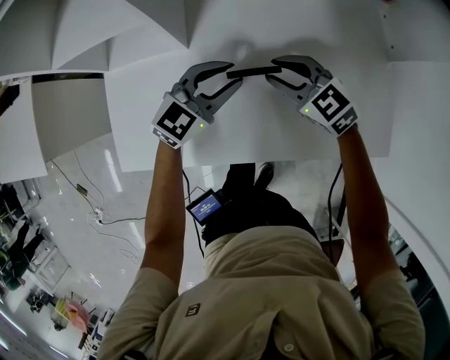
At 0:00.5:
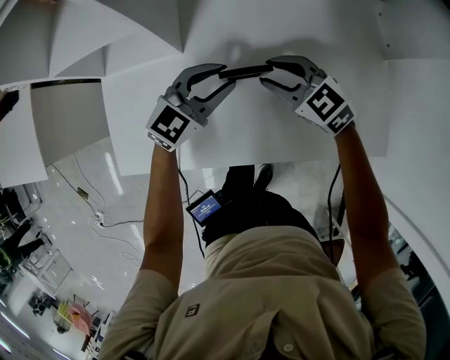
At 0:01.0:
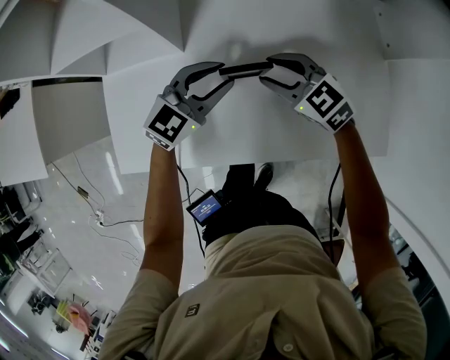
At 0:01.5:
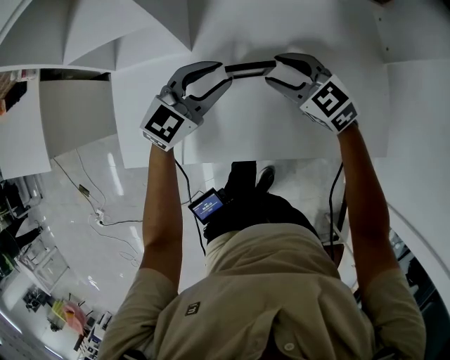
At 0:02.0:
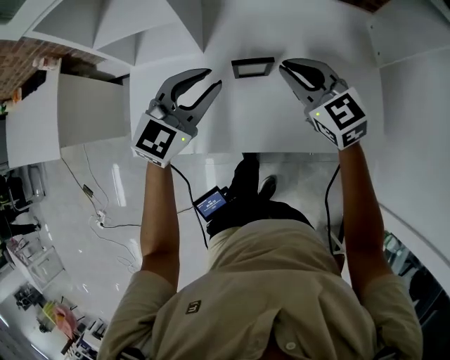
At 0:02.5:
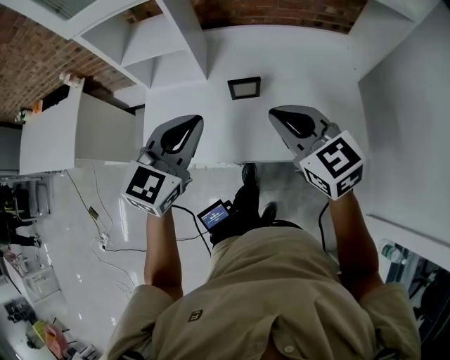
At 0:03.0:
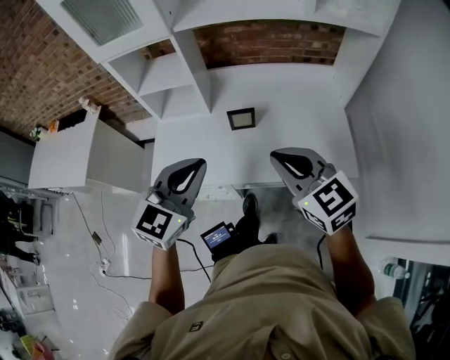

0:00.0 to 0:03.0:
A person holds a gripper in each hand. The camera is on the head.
0:00.0 to 0:01.5: The grippers stay close to where they were, moving slightly.
0:01.5 to 0:03.0: Both grippers travel together backward and upward, some 40 cm. The left gripper changes its angle by roughly 20 degrees, and closes its fingers; the right gripper changes its angle by roughly 20 degrees, and closes its fingers.

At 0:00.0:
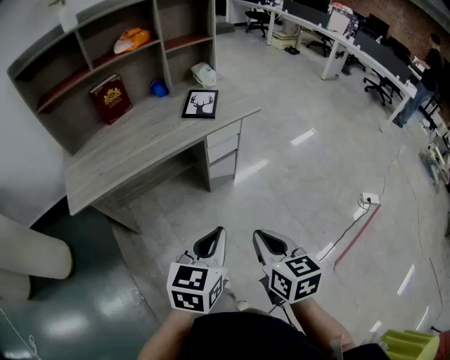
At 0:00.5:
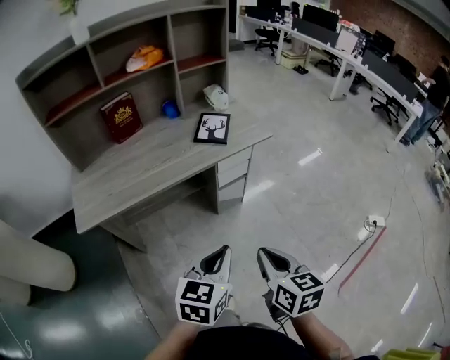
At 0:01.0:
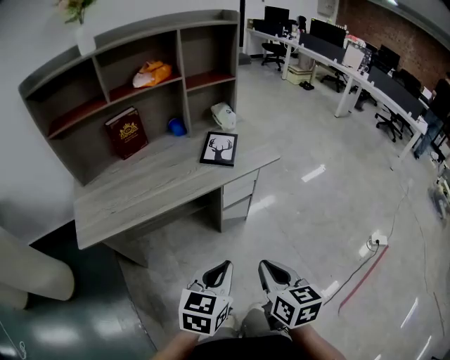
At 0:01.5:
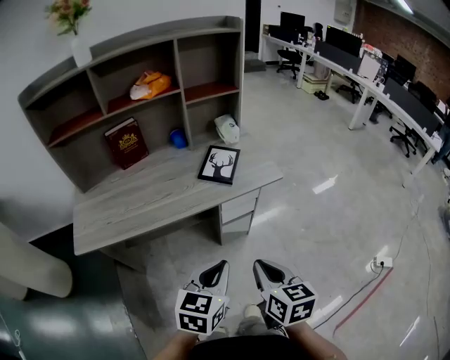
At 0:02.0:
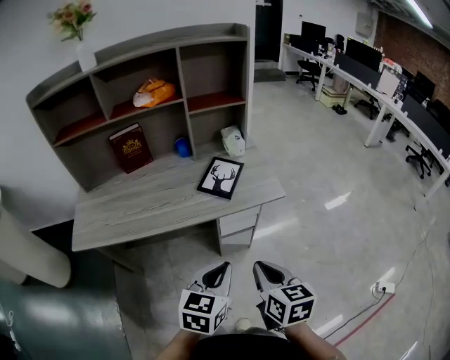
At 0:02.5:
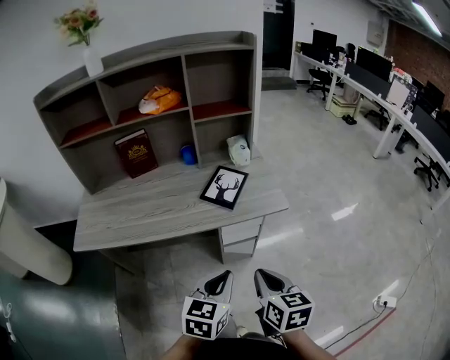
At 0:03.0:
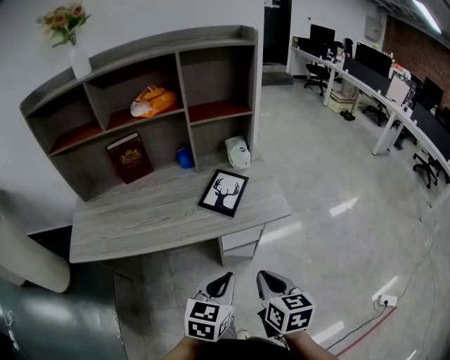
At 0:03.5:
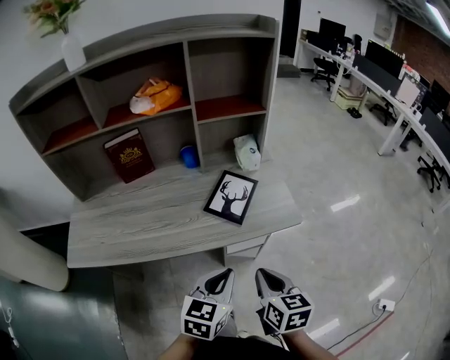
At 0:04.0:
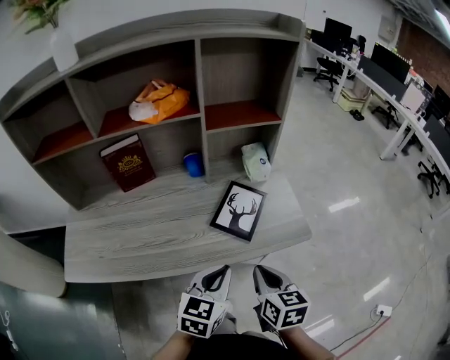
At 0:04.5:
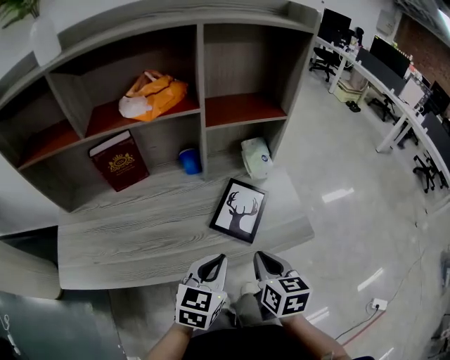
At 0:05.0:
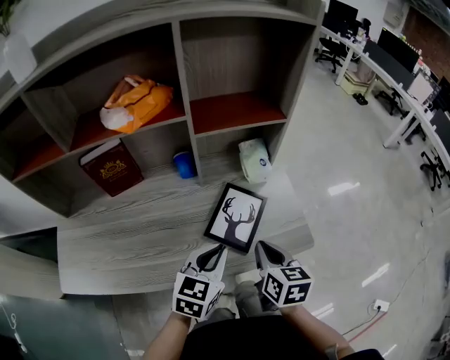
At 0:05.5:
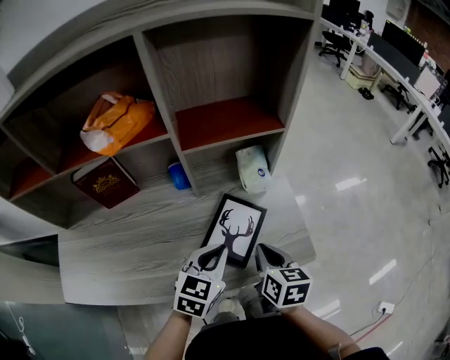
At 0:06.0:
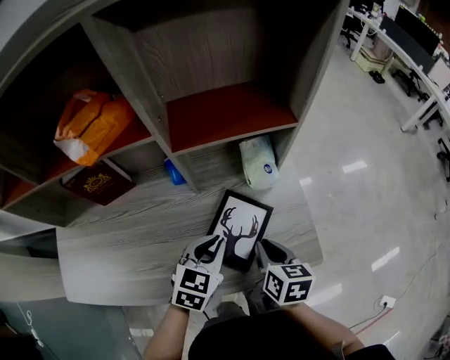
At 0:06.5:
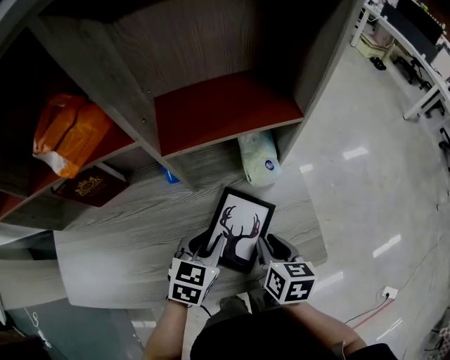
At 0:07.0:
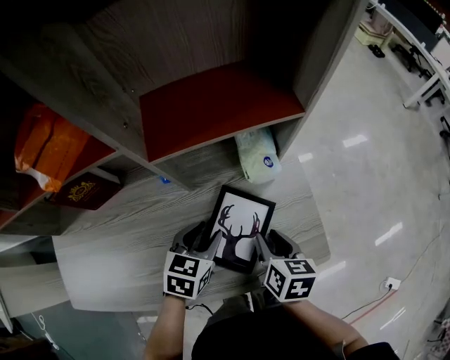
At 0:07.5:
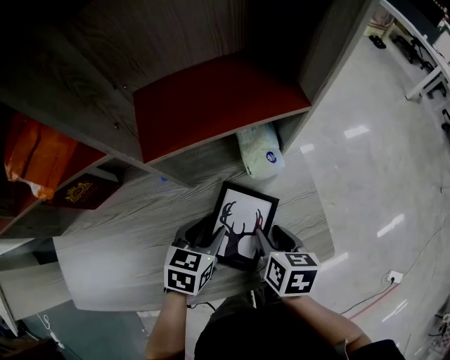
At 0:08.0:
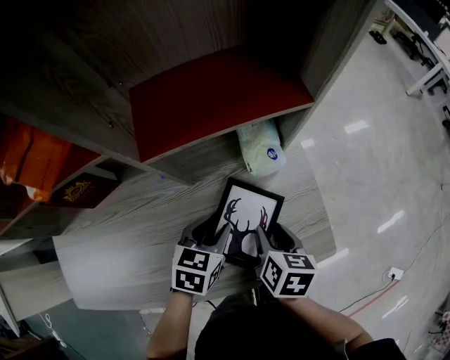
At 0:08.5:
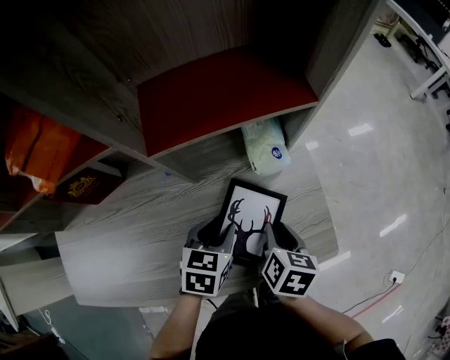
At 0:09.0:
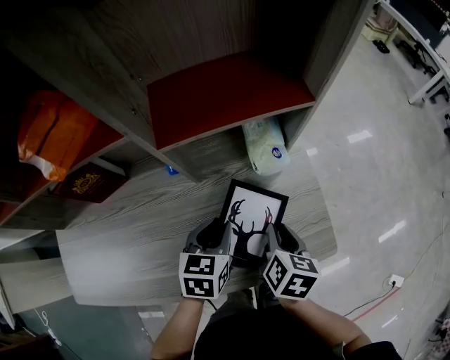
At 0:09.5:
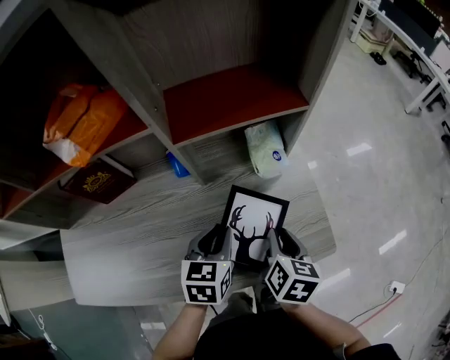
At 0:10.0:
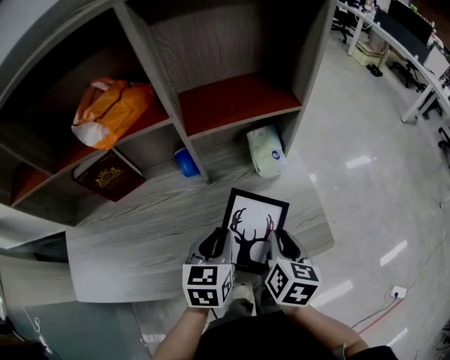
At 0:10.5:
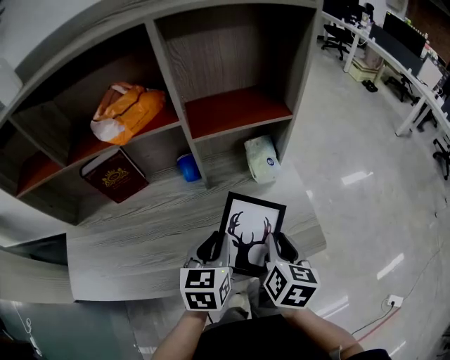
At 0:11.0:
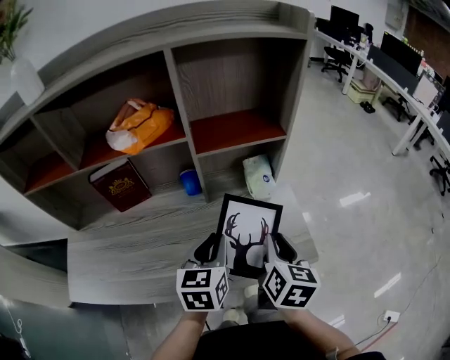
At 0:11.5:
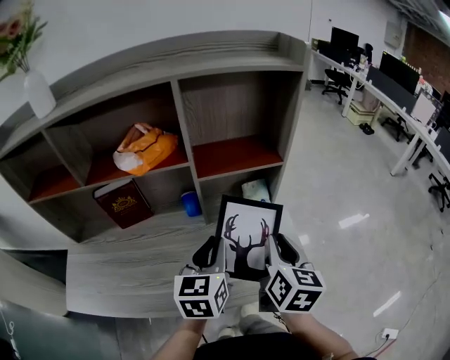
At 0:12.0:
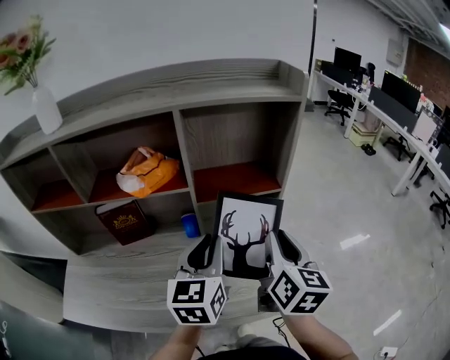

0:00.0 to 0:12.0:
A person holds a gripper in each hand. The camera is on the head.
0:00.0 to 0:02.0: The grippers both shift forward by some 25 cm.
0:02.0 to 0:04.0: Both grippers travel together forward, about 20 cm.
0:04.0 to 0:06.0: The grippers both shift forward by approximately 20 cm.
0:06.0 to 0:08.0: The right gripper moves approximately 5 cm, and opens up. The left gripper heads downward, covering about 5 cm, and opens up.
0:08.0 to 0:10.0: The two grippers go about 10 cm upward and backward. The right gripper closes its fingers.
0:10.0 to 0:12.0: The grippers both shift upward by approximately 20 cm. The left gripper swivels about 30 degrees. Meanwhile the right gripper rotates about 30 degrees.

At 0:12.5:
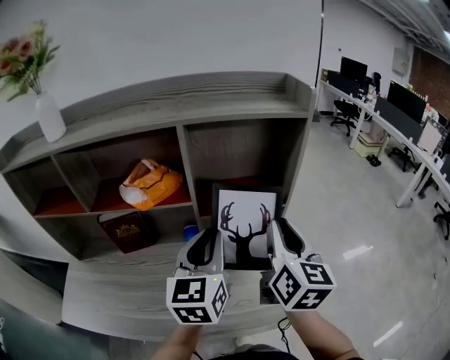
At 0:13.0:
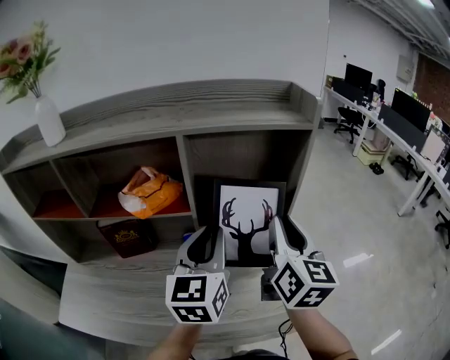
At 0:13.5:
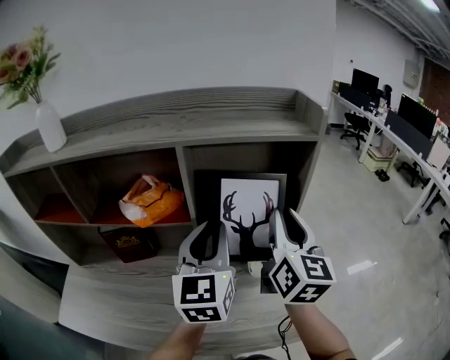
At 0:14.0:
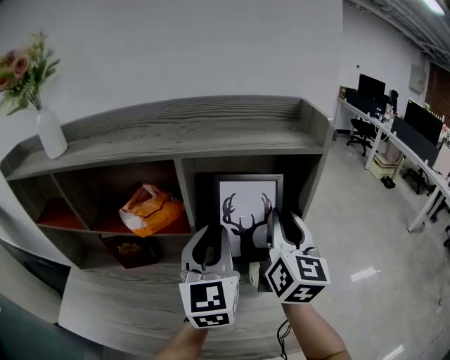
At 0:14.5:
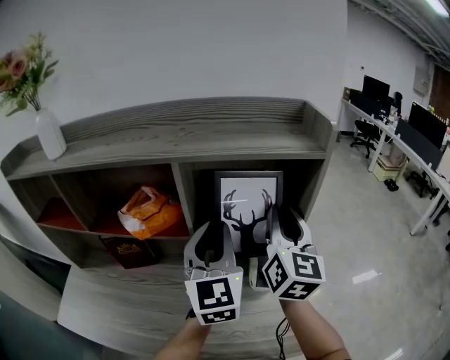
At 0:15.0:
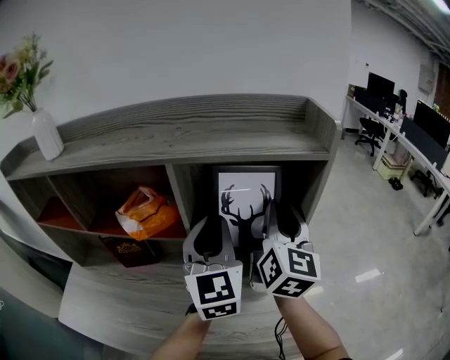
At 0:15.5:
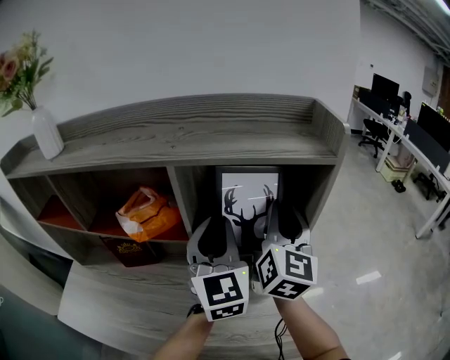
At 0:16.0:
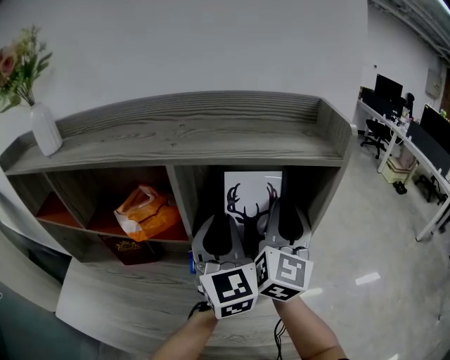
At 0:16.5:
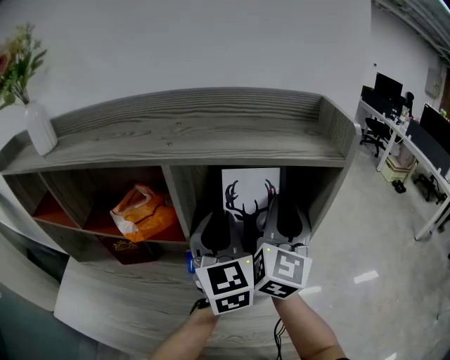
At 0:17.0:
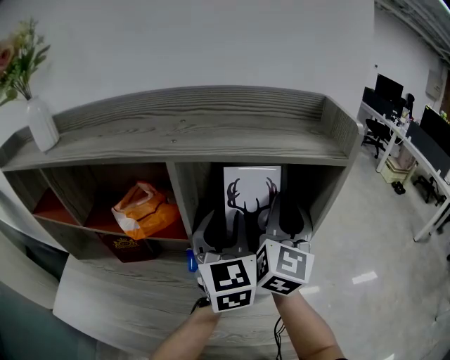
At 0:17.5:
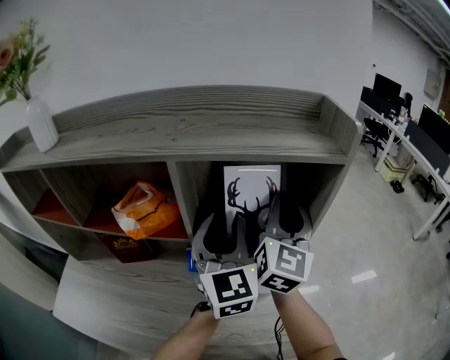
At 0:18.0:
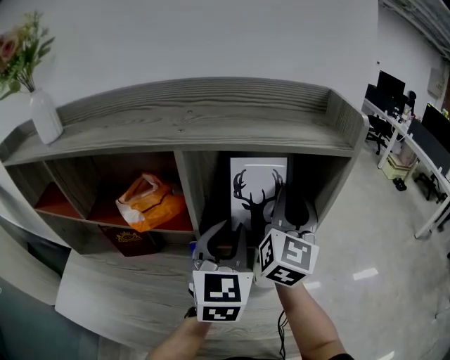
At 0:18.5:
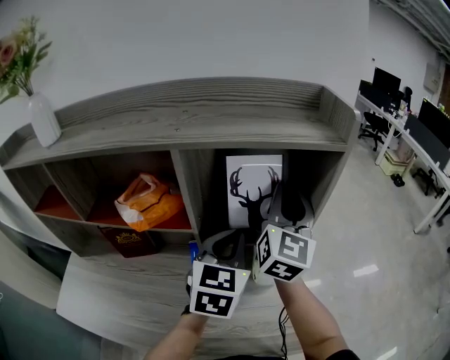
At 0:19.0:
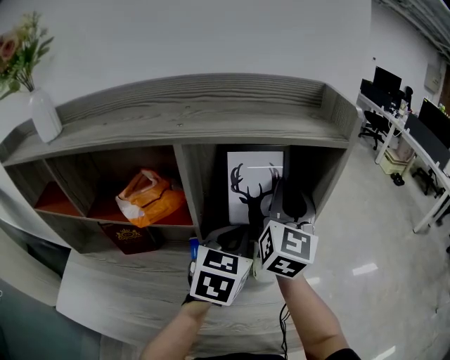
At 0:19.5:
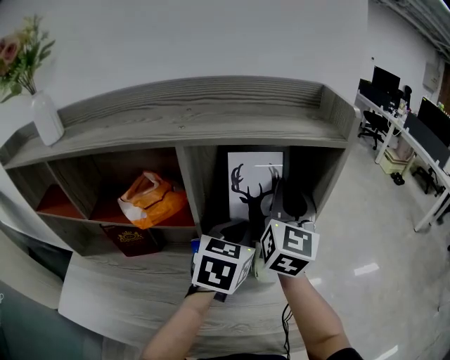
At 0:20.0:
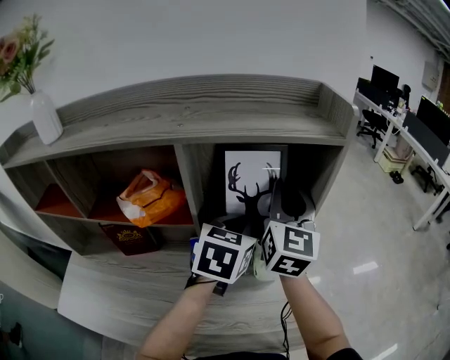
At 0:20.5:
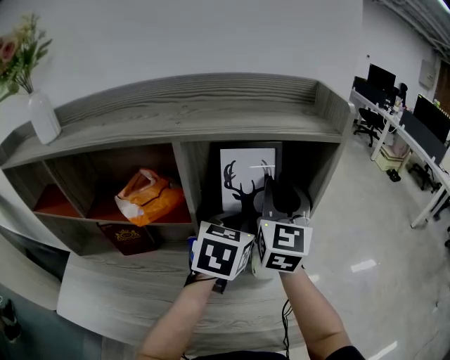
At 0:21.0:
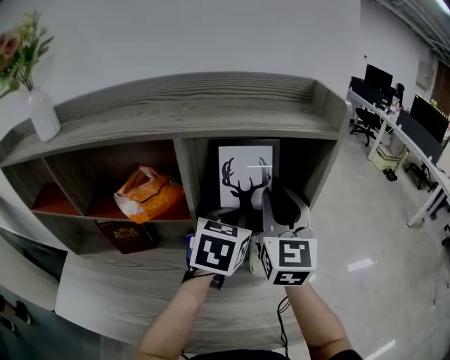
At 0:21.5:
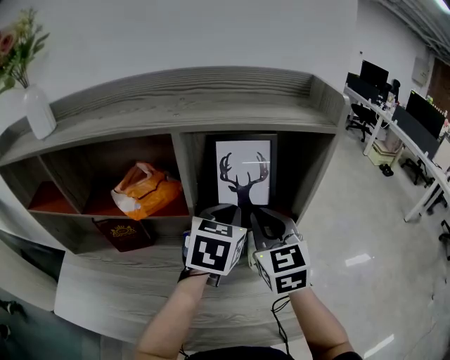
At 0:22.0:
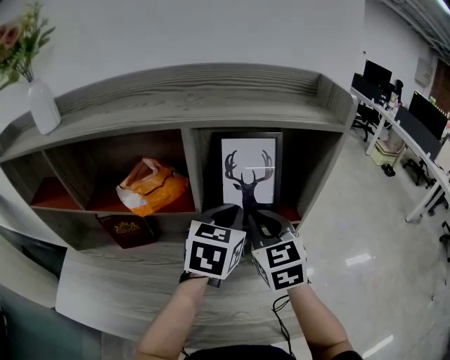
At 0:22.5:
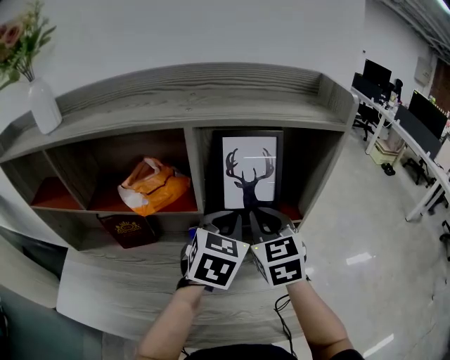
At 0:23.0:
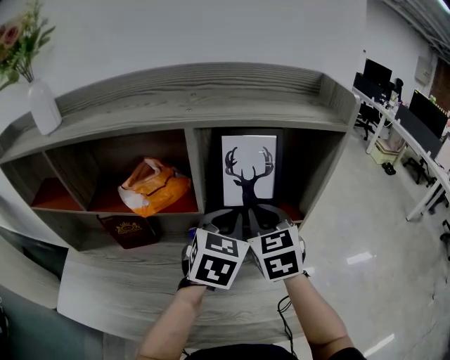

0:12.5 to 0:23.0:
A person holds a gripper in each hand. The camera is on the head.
0:12.5 to 0:14.5: The two grippers go roughly 10 cm forward and upward. The left gripper swivels about 20 degrees.
0:14.5 to 0:16.5: The left gripper travels forward by some 5 cm.
0:16.5 to 0:19.0: The left gripper travels downward by some 5 cm, turns by roughly 40 degrees, and opens, then closes again.
0:19.0 to 0:21.0: The grippers move only a little.
0:21.0 to 0:23.0: The right gripper goes approximately 10 cm downward and to the left, swivels some 30 degrees, and closes.

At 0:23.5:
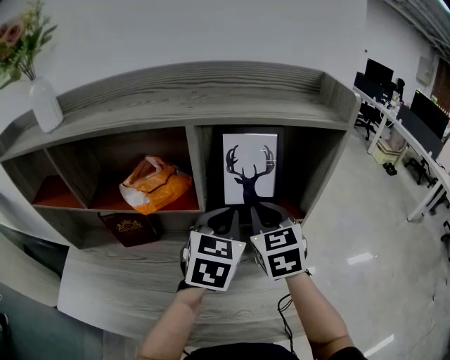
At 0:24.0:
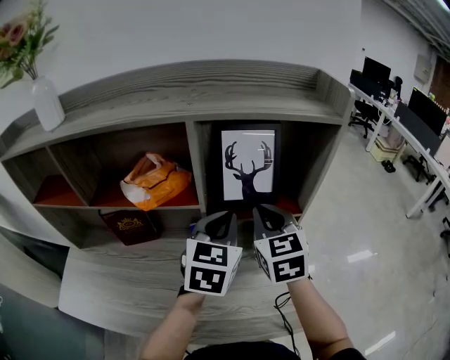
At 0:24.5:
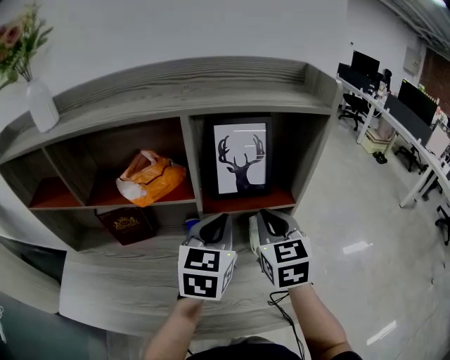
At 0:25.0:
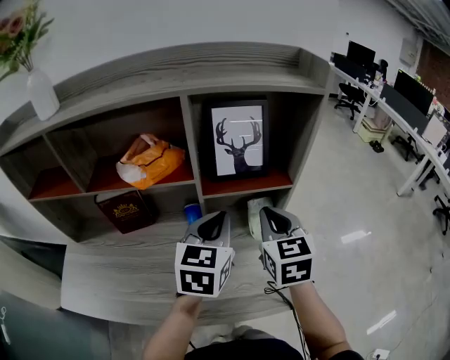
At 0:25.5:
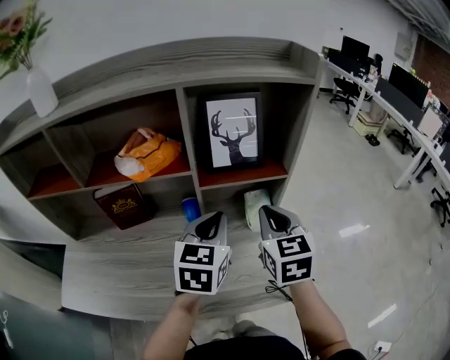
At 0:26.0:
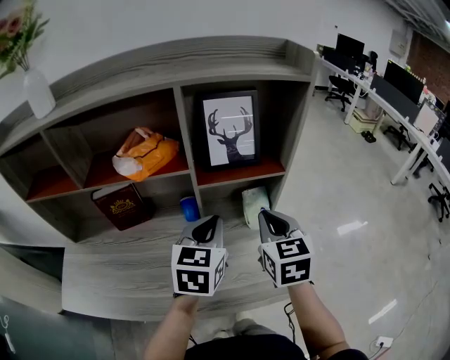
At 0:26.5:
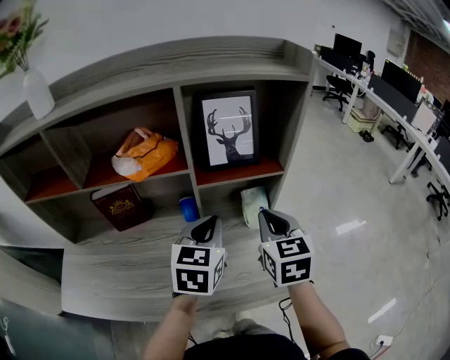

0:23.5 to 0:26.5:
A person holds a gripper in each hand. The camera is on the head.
0:23.5 to 0:25.0: The grippers both shift backward by roughly 10 cm.
0:25.0 to 0:26.5: There are only small adjustments of the grippers.
